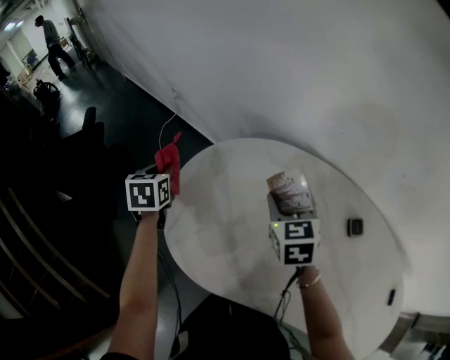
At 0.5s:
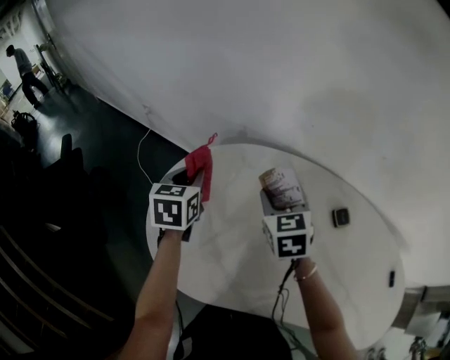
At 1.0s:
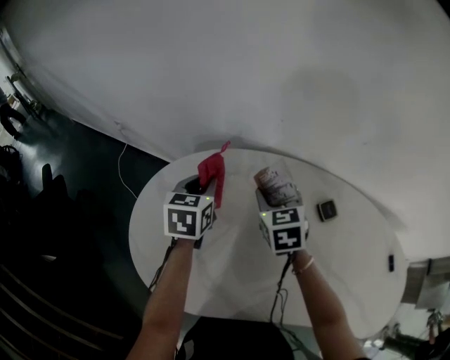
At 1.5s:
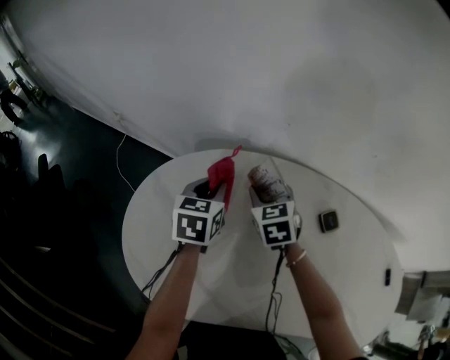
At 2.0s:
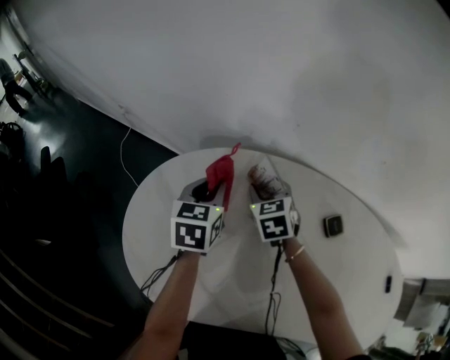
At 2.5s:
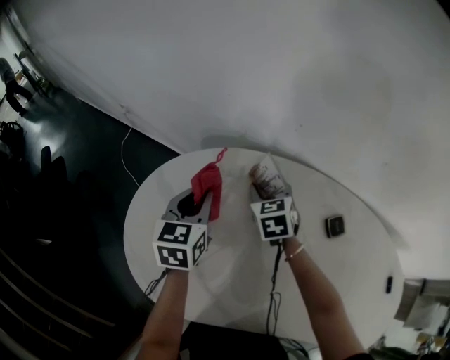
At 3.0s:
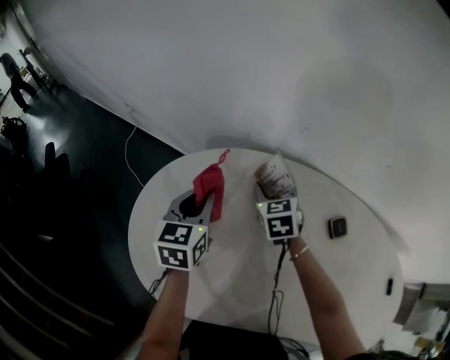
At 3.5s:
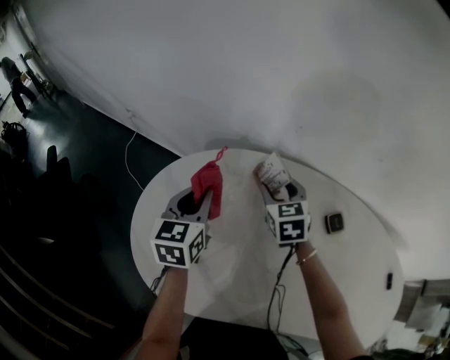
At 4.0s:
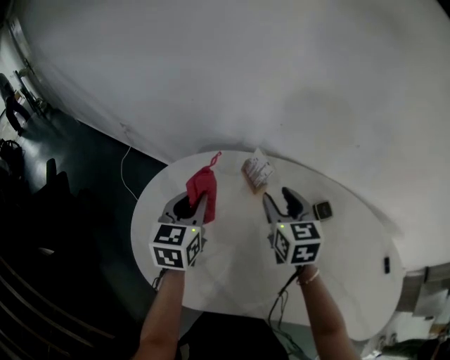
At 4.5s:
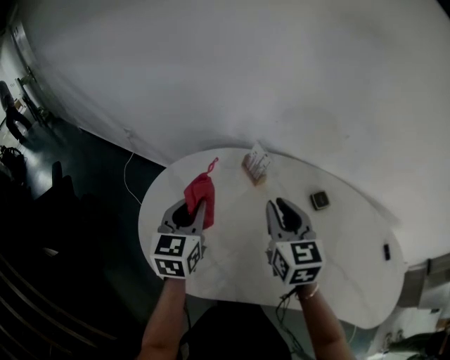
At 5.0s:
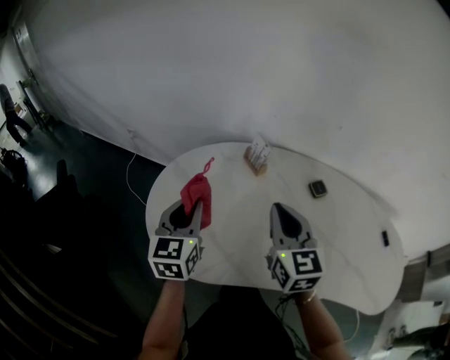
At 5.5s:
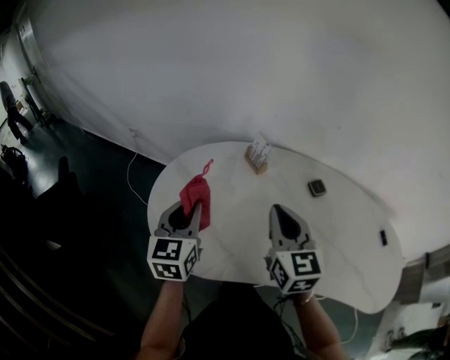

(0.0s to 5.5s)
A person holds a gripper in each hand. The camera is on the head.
0.0s - 2.0s: The right gripper travels forward, downward and to the right by some 15 cm. The left gripper moves to the right, roughly 30 cm, and changes its angle by roughly 30 degrees.
2.0s - 3.5s: The left gripper moves some 5 cm.
3.5s - 5.5s: The right gripper moves backward and upward, roughly 30 cm, turns by approximately 30 degrees, and closes up. The left gripper goes some 20 cm backward and upward.

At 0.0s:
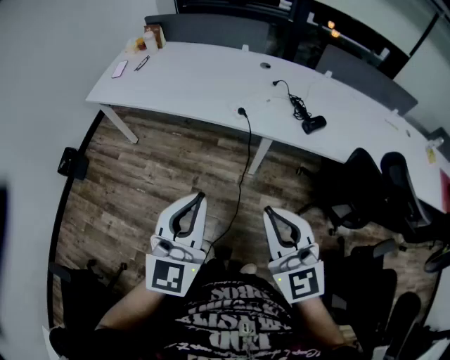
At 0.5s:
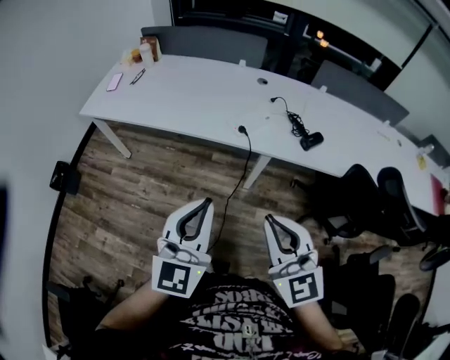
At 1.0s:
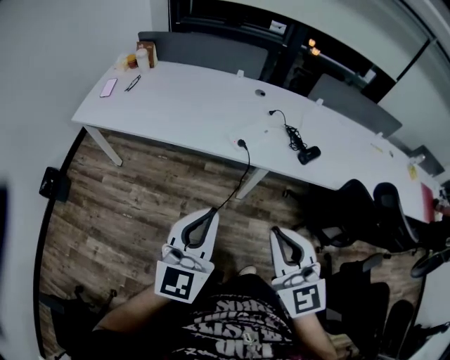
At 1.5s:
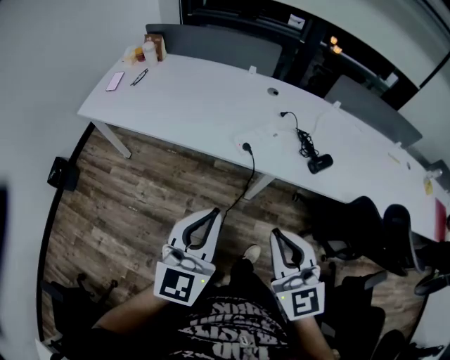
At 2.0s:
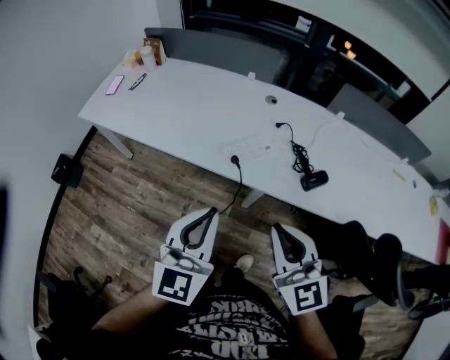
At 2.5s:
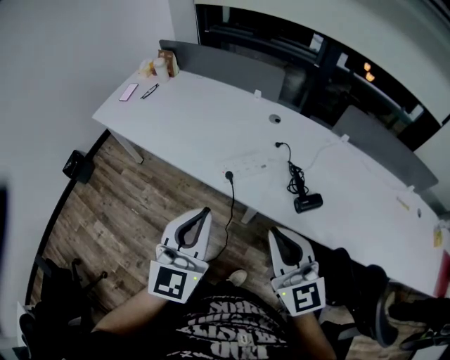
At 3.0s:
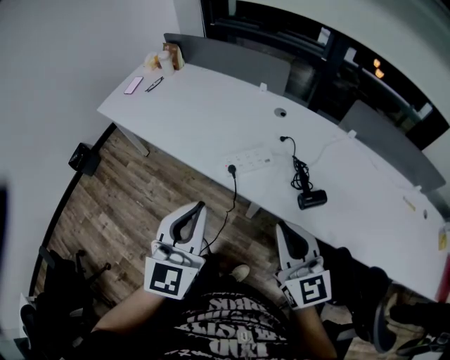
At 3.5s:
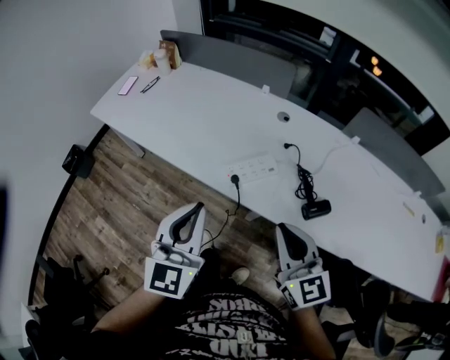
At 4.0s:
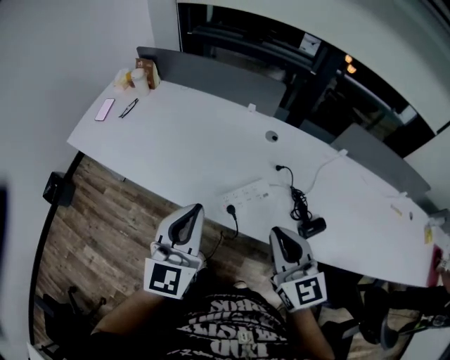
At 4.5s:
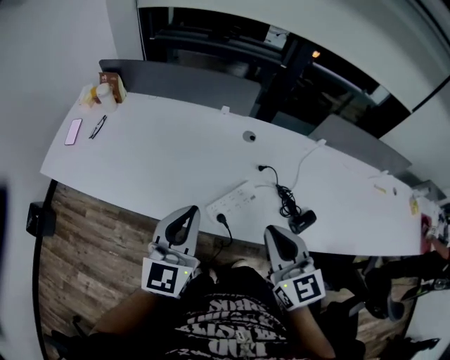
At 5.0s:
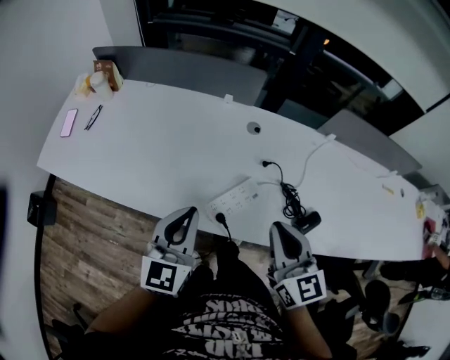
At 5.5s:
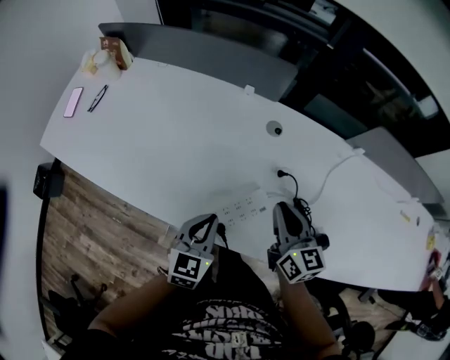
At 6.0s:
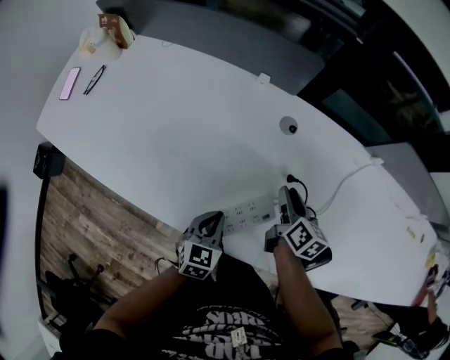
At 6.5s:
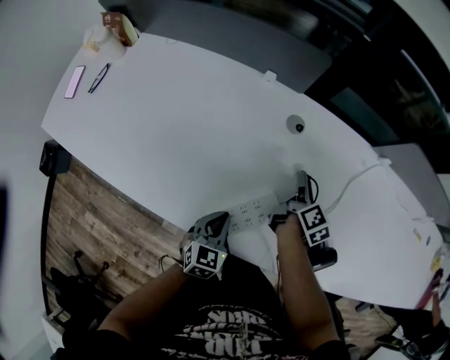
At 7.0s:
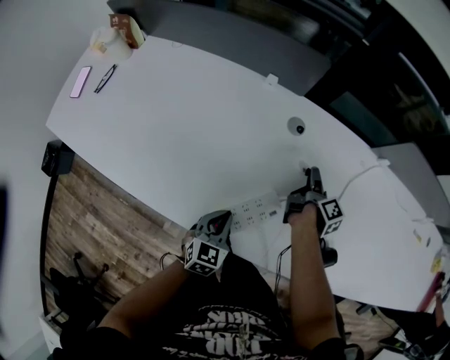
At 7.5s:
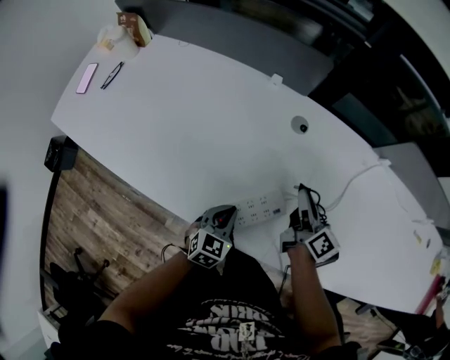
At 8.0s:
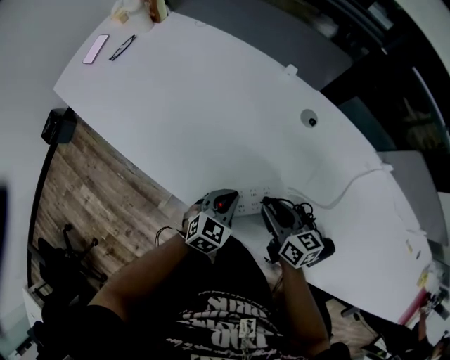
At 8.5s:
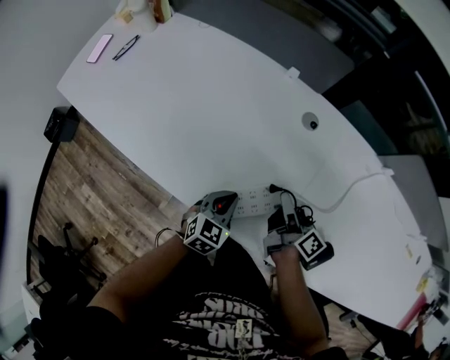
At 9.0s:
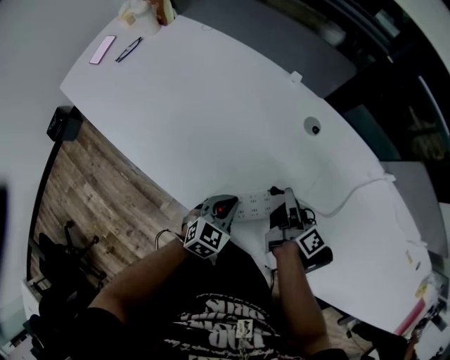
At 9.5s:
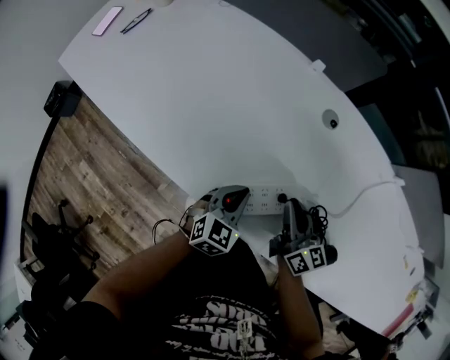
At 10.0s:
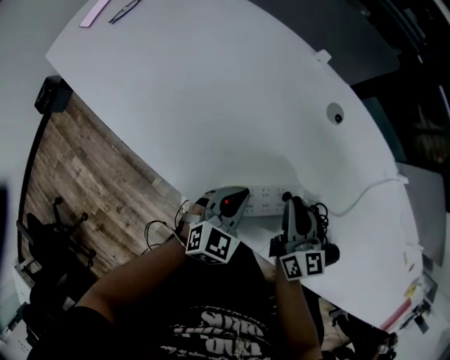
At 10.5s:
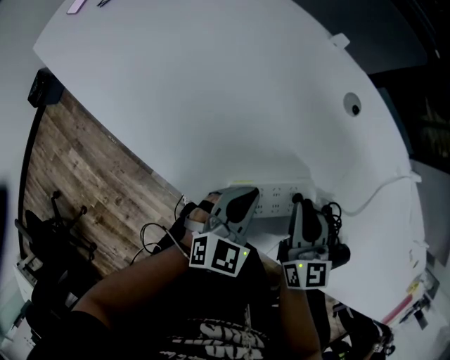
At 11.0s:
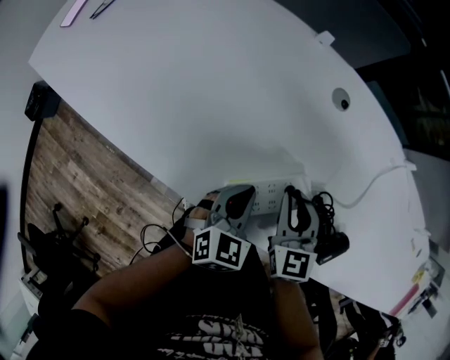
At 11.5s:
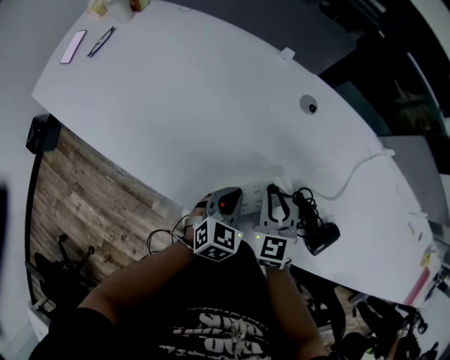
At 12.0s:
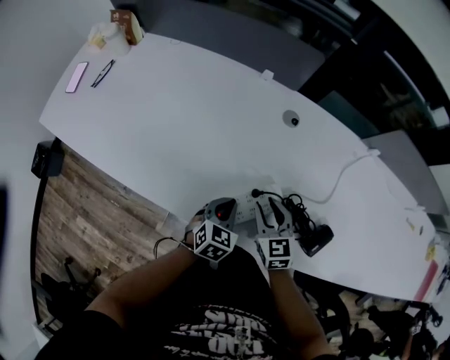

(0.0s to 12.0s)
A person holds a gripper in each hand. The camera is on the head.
0.0s - 2.0s: The grippers both shift forward by roughly 20 cm.
2.0s - 4.0s: Both grippers travel together forward, some 20 cm.
4.0s - 6.0s: The right gripper goes roughly 40 cm forward and downward, rolls clockwise, seen from behind, by approximately 50 degrees, and opens its fingers. The left gripper goes roughly 35 cm downward and forward, and angles its fingers downward, by approximately 40 degrees.
6.0s - 8.0s: The right gripper reaches about 5 cm downward, then returns, and swivels some 40 degrees.
8.0s - 10.0s: The right gripper turns by approximately 20 degrees.
10.0s - 12.0s: The right gripper swivels approximately 30 degrees.

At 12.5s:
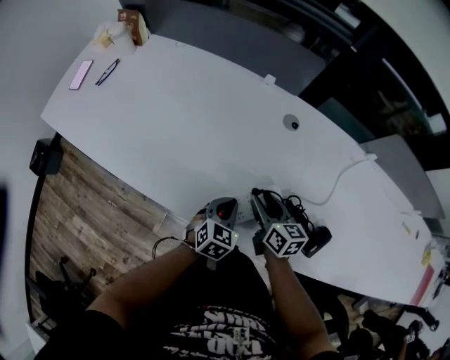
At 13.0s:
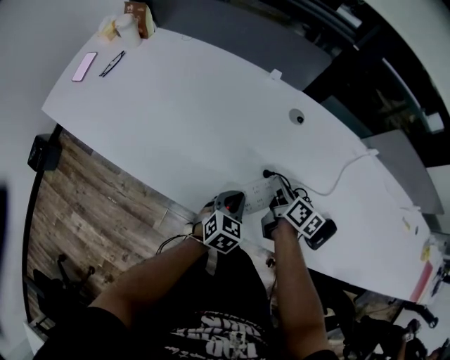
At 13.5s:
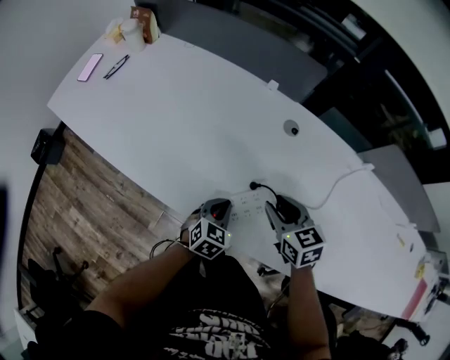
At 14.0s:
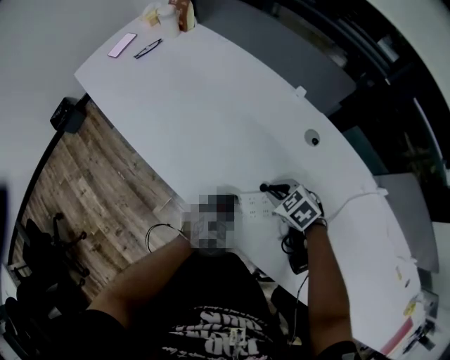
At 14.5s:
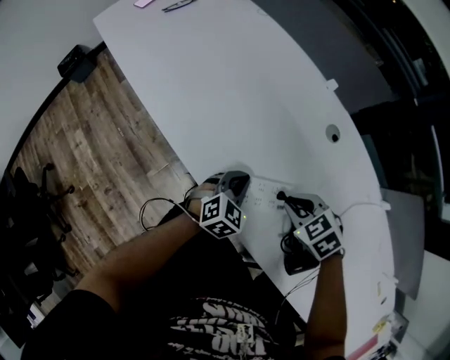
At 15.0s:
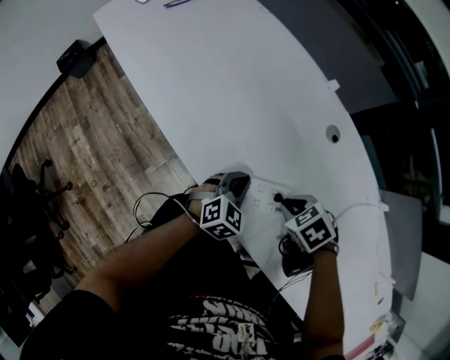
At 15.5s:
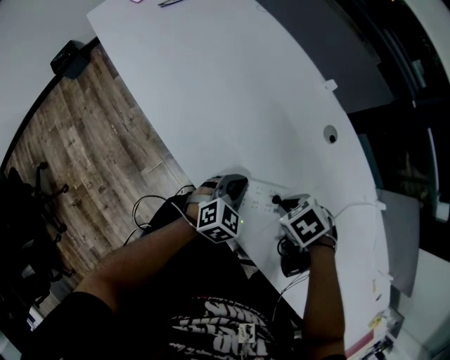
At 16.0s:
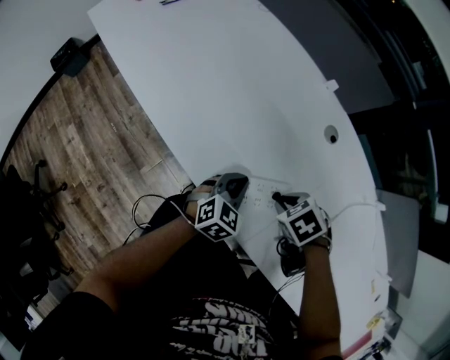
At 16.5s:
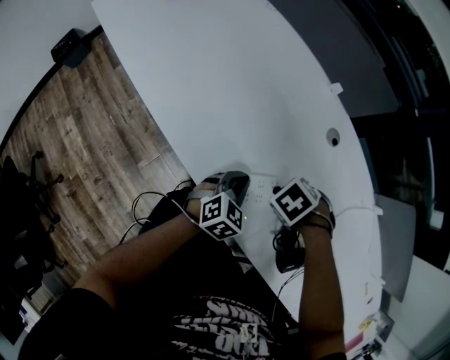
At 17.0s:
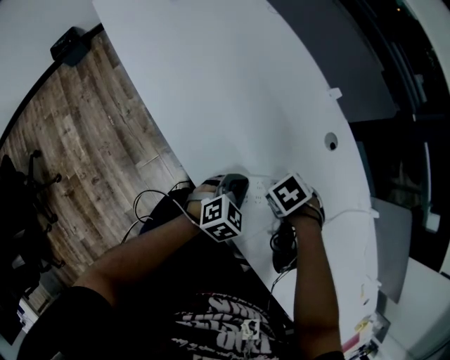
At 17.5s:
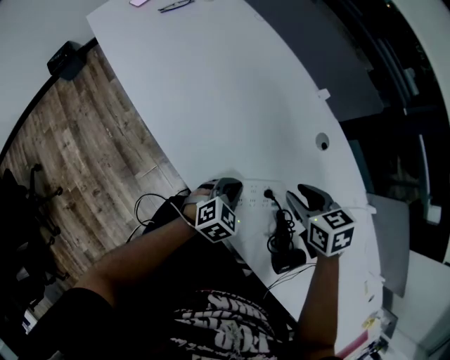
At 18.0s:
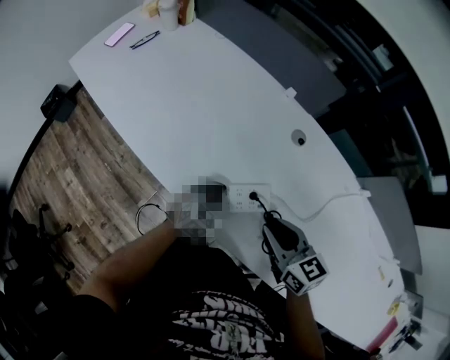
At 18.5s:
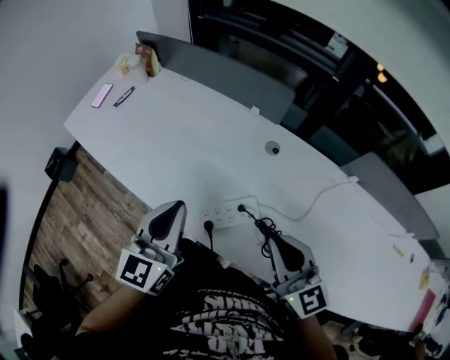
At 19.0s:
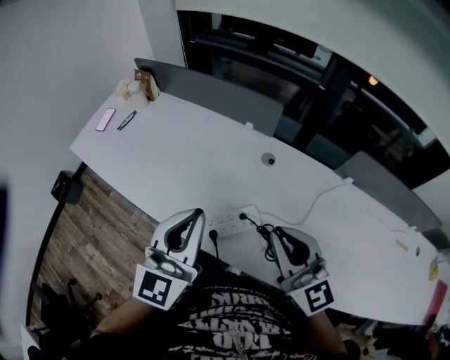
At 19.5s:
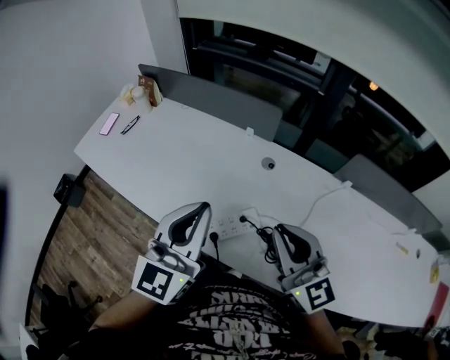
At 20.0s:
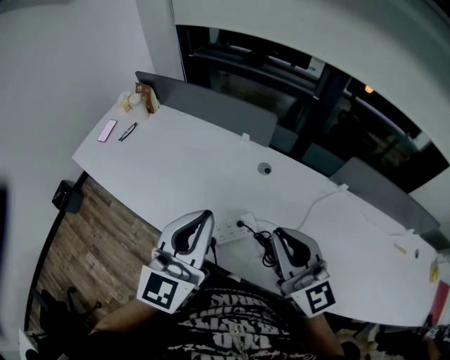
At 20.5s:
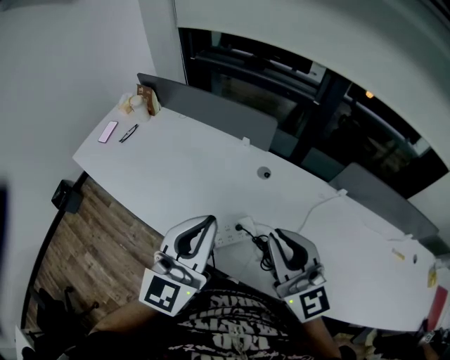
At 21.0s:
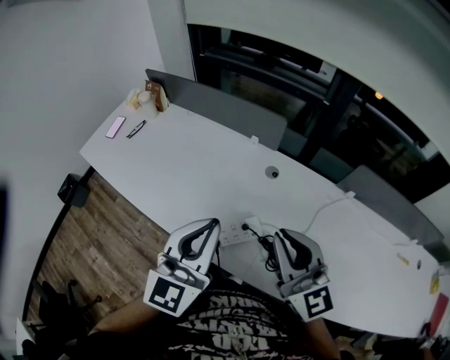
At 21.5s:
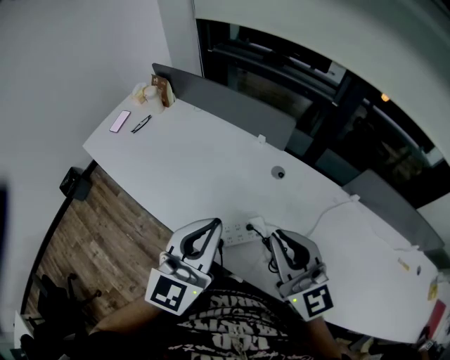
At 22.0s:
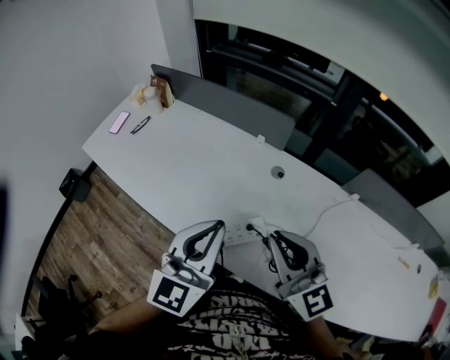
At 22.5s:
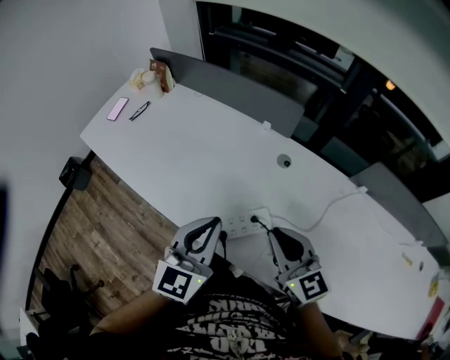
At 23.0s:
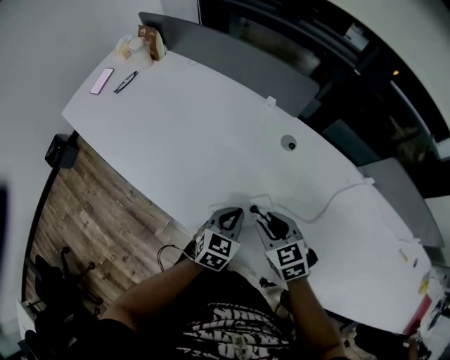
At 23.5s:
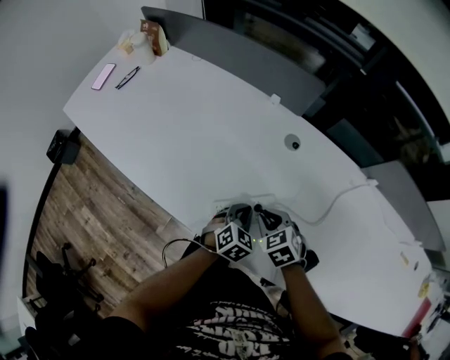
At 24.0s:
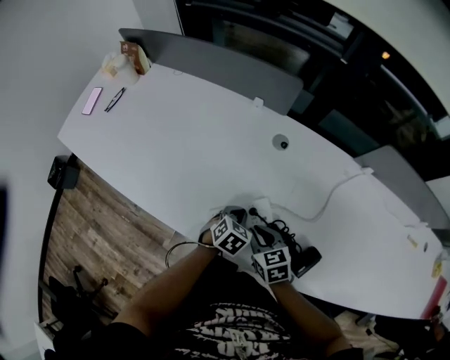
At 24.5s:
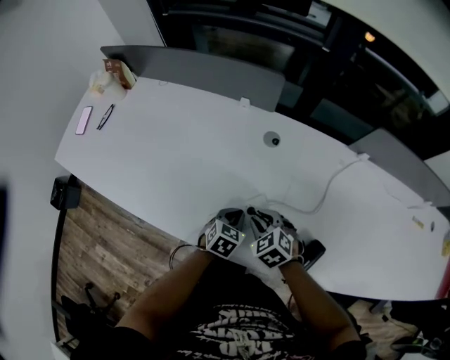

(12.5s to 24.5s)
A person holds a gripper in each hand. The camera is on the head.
12.5s - 14.5s: The right gripper moves up and down over approximately 10 cm, changing direction 2 times, tips its fingers downward by about 40 degrees, and closes its fingers.
14.5s - 16.5s: The right gripper changes its angle by approximately 30 degrees.
16.5s - 18.5s: The two grippers go some 30 cm upward. The left gripper tips its fingers upward by some 40 degrees; the right gripper tips its fingers upward by some 70 degrees.
18.5s - 20.5s: The right gripper is displaced upward by some 10 cm, while the left gripper shifts some 15 cm upward and to the right.
20.5s - 22.5s: The two grippers go about 10 cm downward. The right gripper changes its angle by roughly 20 degrees.
22.5s - 24.5s: The grippers both shift downward by some 30 cm. The right gripper tips its fingers downward by approximately 40 degrees, and opens up; the left gripper angles its fingers downward, by some 40 degrees.
